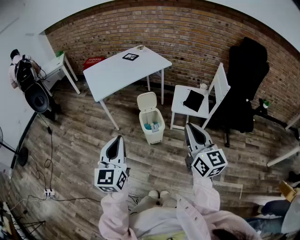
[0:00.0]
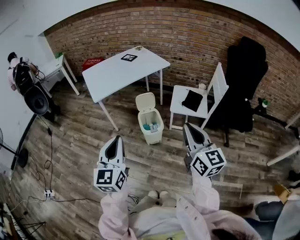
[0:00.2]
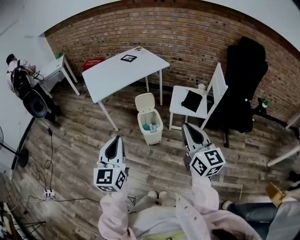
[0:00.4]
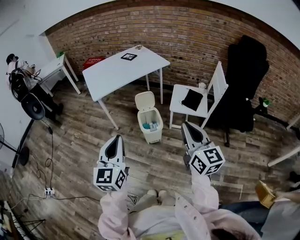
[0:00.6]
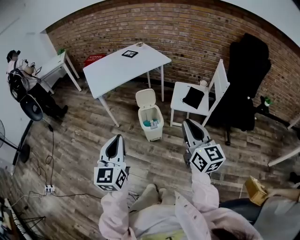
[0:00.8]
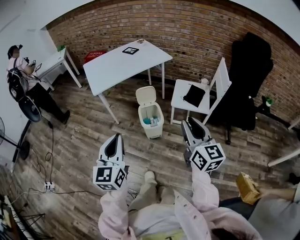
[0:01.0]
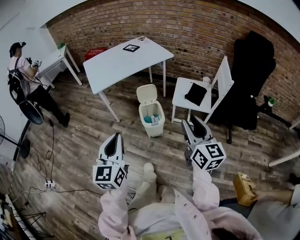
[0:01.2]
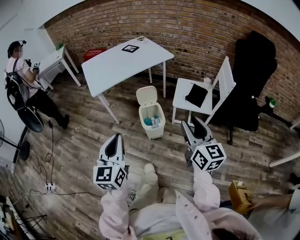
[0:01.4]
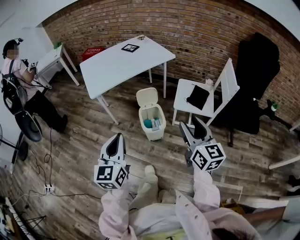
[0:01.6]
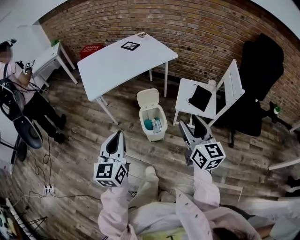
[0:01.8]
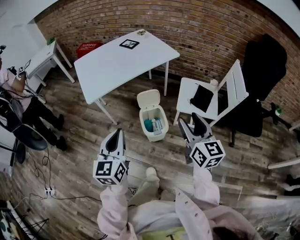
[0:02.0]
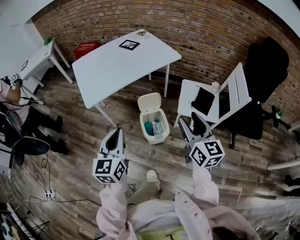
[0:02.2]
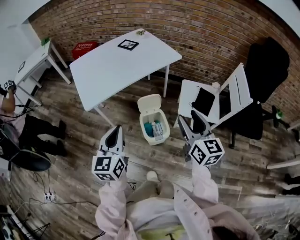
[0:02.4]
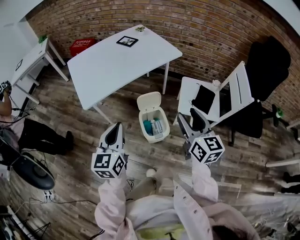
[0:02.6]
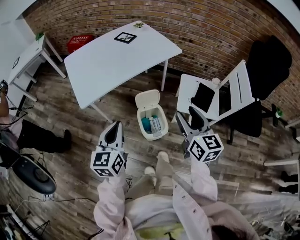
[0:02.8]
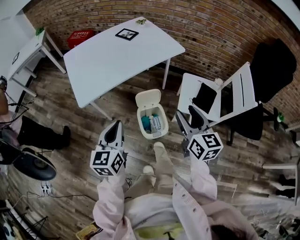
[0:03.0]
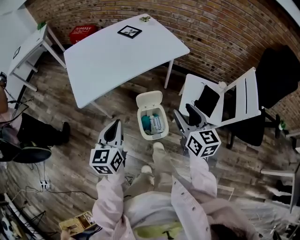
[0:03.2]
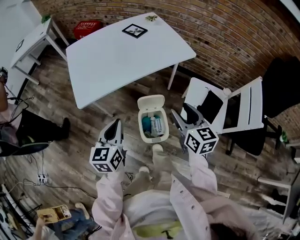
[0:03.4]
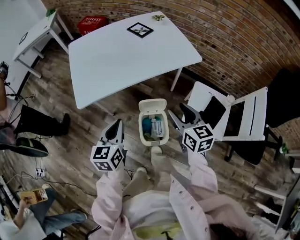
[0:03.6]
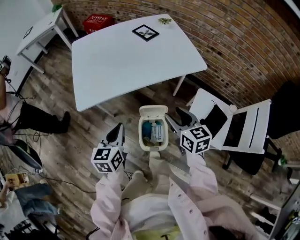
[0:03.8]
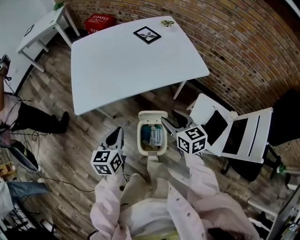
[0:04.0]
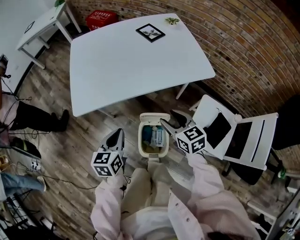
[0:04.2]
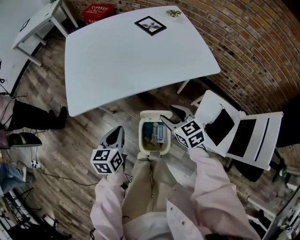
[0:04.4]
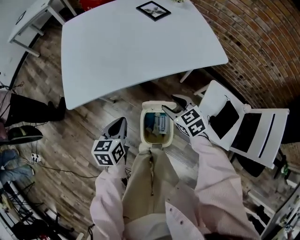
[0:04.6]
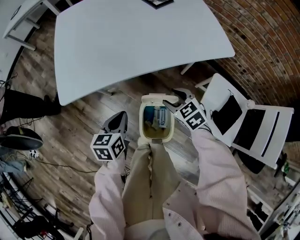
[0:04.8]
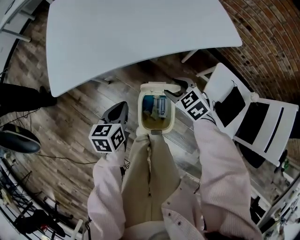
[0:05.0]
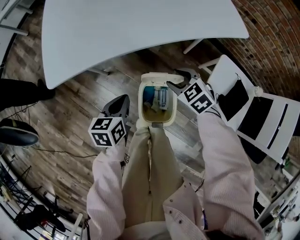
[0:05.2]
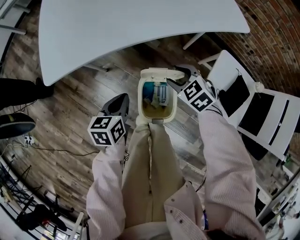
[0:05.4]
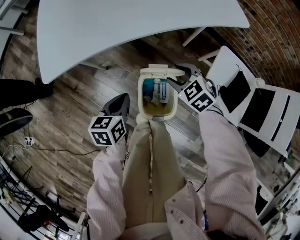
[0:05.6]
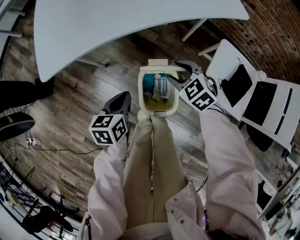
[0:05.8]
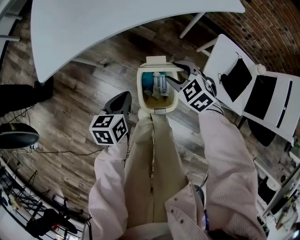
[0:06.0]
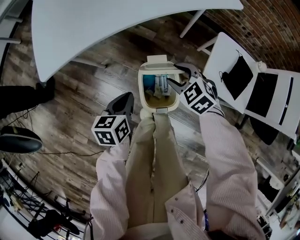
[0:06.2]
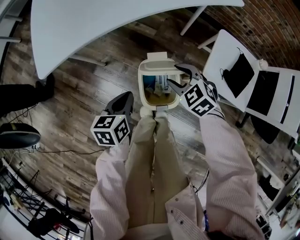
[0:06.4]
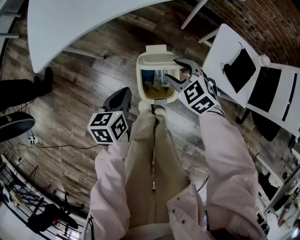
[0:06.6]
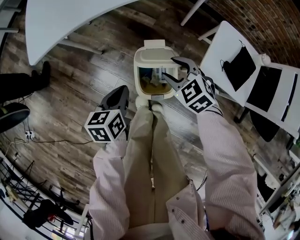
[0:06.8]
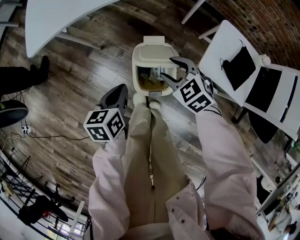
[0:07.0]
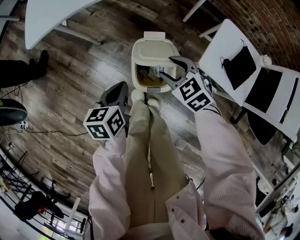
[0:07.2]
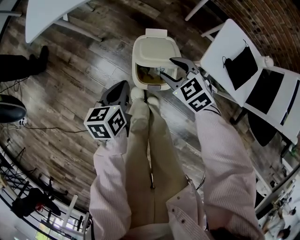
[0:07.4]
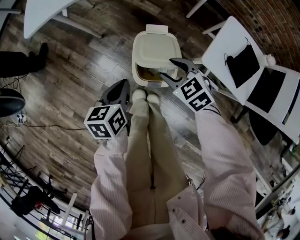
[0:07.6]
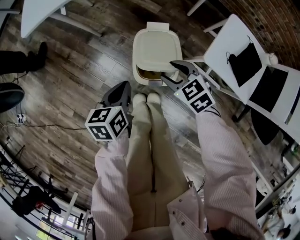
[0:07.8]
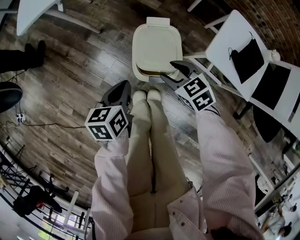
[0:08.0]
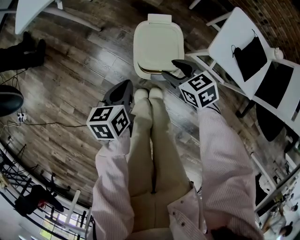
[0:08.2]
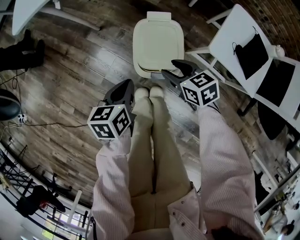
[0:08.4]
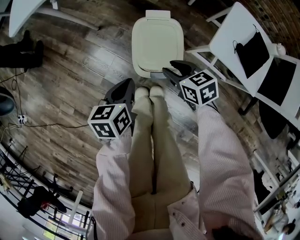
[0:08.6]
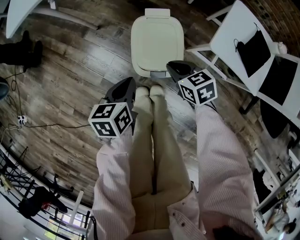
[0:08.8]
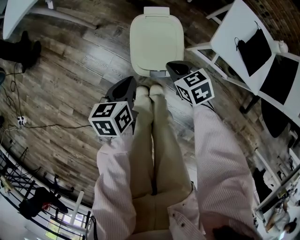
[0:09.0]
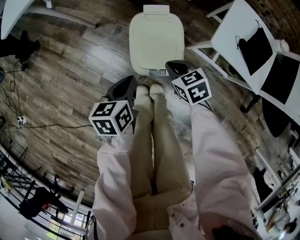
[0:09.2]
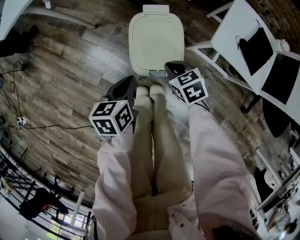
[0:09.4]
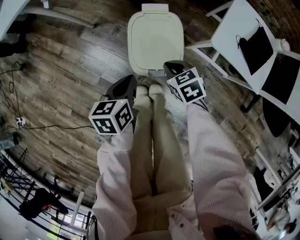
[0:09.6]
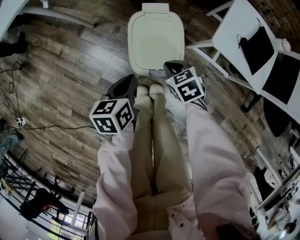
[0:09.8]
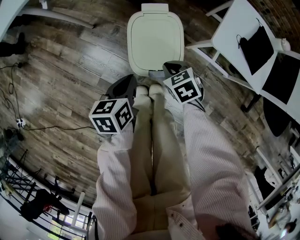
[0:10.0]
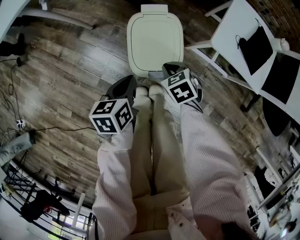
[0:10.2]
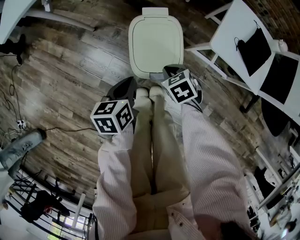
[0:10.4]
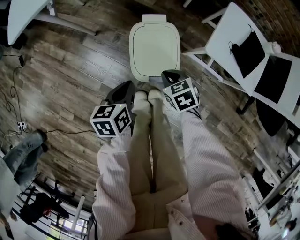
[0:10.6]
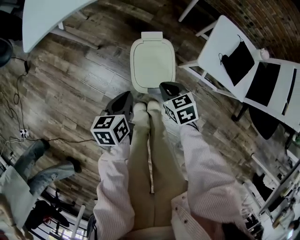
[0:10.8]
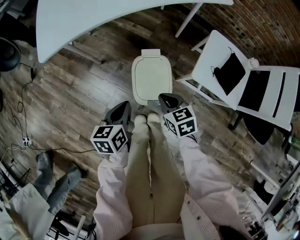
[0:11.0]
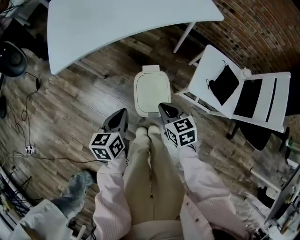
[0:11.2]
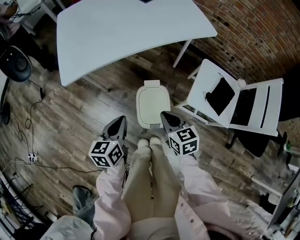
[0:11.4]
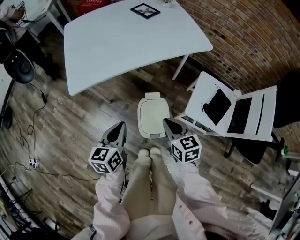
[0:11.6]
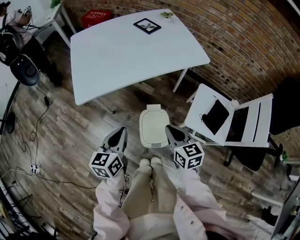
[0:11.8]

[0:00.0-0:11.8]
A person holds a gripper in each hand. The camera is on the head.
0:00.0 to 0:01.4: The right gripper travels forward by roughly 5 cm, and opens up. The left gripper ends up approximately 5 cm from where it was.
0:01.4 to 0:03.0: The grippers both shift forward by approximately 30 cm.
0:03.0 to 0:04.4: The left gripper heads downward and forward, covering approximately 20 cm, and turns by approximately 20 degrees. Meanwhile the right gripper is displaced forward and downward by approximately 30 cm, and rotates about 50 degrees.
0:04.4 to 0:06.0: Both grippers travel together downward, roughly 15 cm. The right gripper turns by approximately 30 degrees.
0:06.0 to 0:07.4: The two grippers go approximately 10 cm backward.
0:07.4 to 0:08.8: The grippers both shift downward by roughly 10 cm. The right gripper turns by approximately 30 degrees, and closes.
0:08.8 to 0:10.4: The right gripper is displaced downward by some 5 cm.
0:10.4 to 0:11.8: The two grippers go approximately 35 cm upward. The right gripper tips its fingers upward by approximately 40 degrees, while the left gripper swivels some 30 degrees.

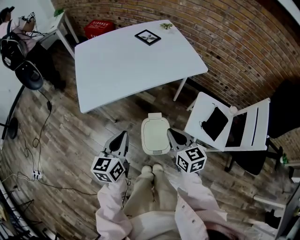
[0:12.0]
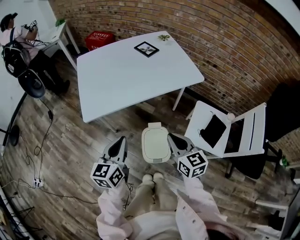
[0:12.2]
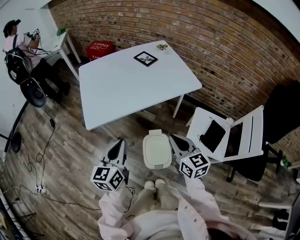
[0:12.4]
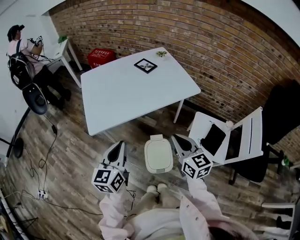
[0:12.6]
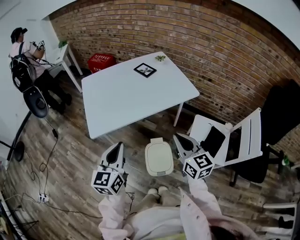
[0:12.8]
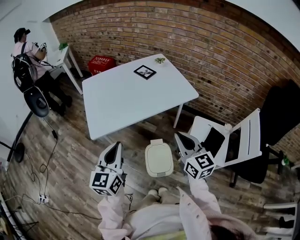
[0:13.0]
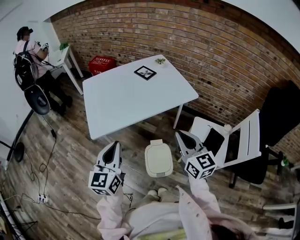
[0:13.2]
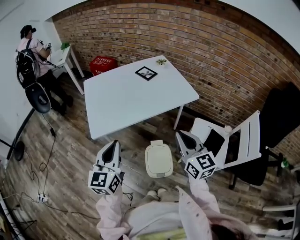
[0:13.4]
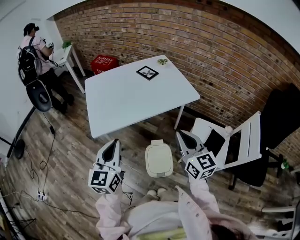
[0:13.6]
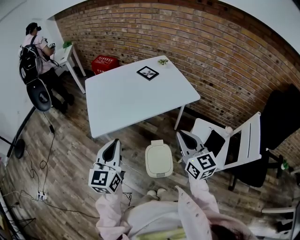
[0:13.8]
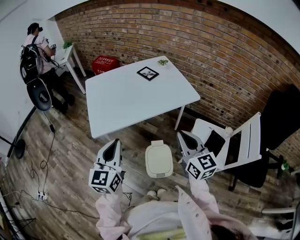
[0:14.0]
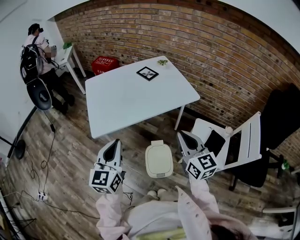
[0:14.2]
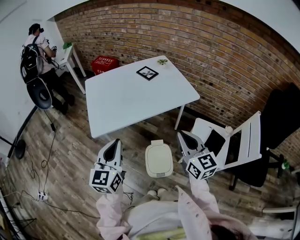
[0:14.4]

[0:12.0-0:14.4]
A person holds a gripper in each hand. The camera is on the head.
0:12.0 to 0:13.2: The grippers both shift upward by about 15 cm. The left gripper changes its angle by roughly 20 degrees; the right gripper swivels some 20 degrees.
0:13.2 to 0:14.4: The two grippers keep their place.

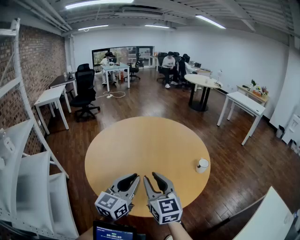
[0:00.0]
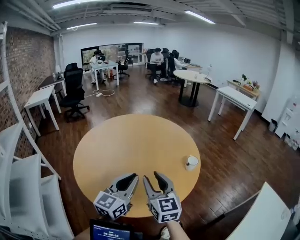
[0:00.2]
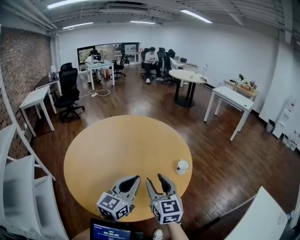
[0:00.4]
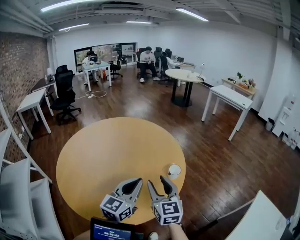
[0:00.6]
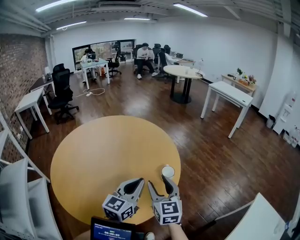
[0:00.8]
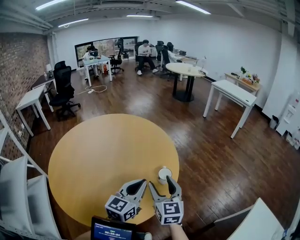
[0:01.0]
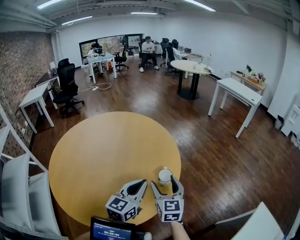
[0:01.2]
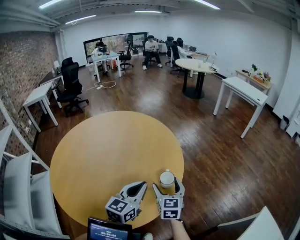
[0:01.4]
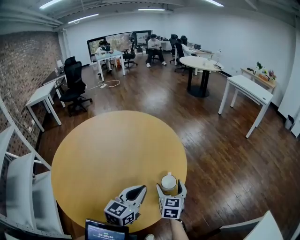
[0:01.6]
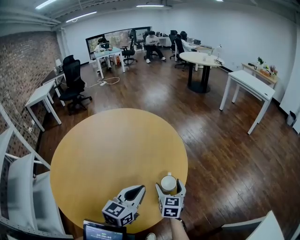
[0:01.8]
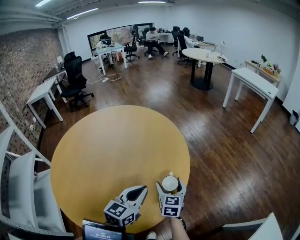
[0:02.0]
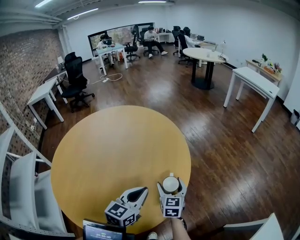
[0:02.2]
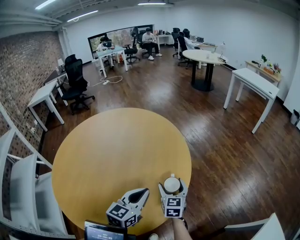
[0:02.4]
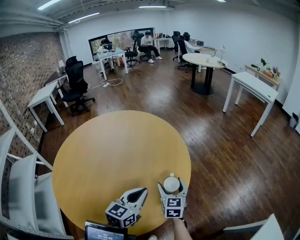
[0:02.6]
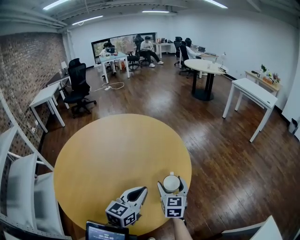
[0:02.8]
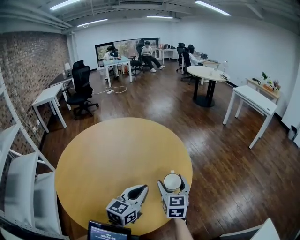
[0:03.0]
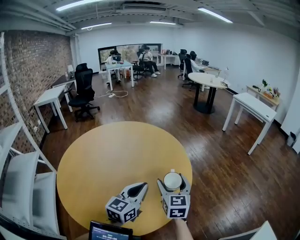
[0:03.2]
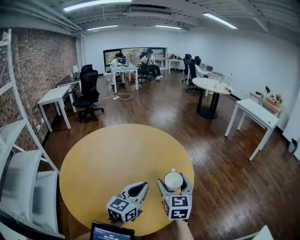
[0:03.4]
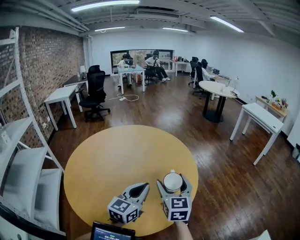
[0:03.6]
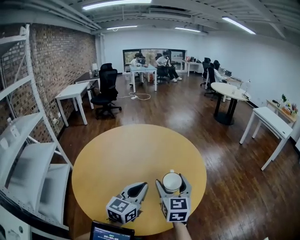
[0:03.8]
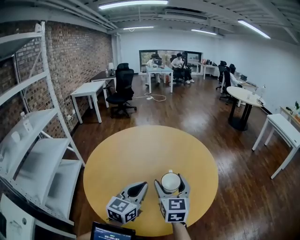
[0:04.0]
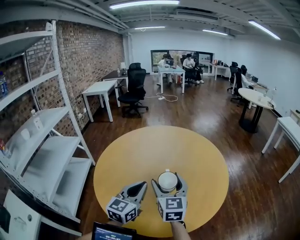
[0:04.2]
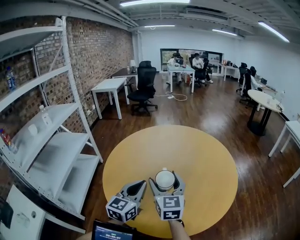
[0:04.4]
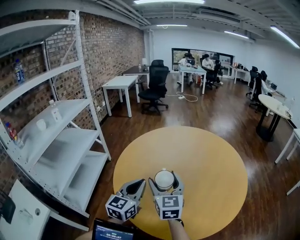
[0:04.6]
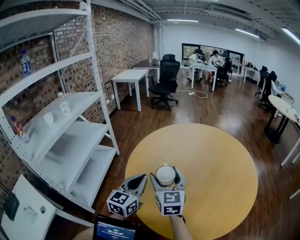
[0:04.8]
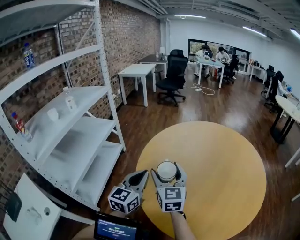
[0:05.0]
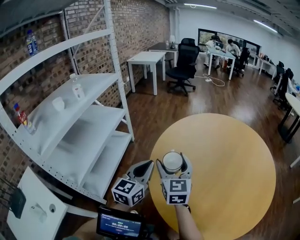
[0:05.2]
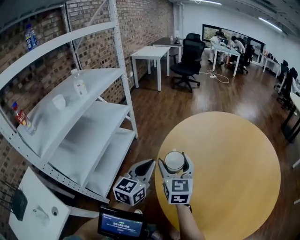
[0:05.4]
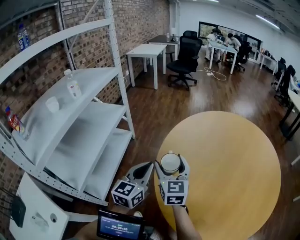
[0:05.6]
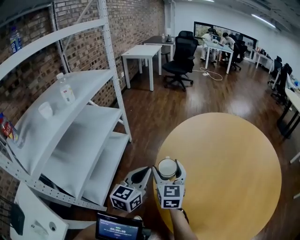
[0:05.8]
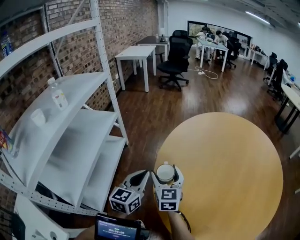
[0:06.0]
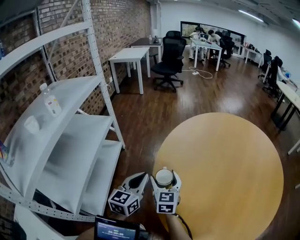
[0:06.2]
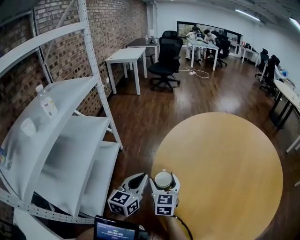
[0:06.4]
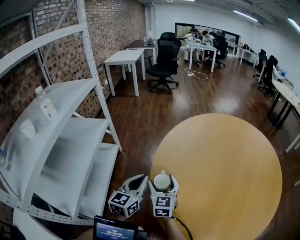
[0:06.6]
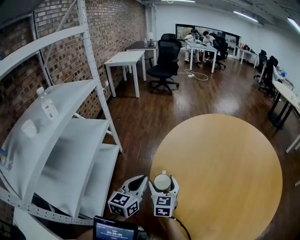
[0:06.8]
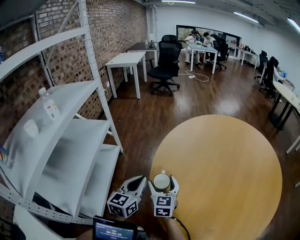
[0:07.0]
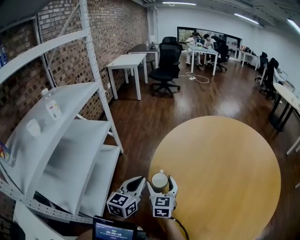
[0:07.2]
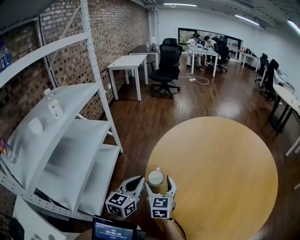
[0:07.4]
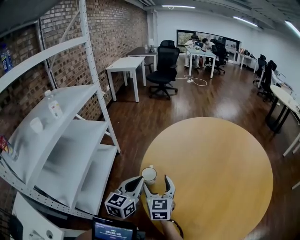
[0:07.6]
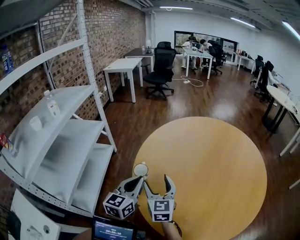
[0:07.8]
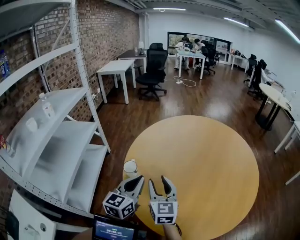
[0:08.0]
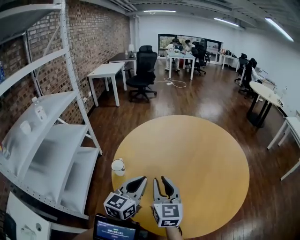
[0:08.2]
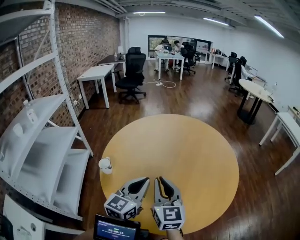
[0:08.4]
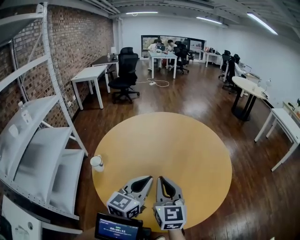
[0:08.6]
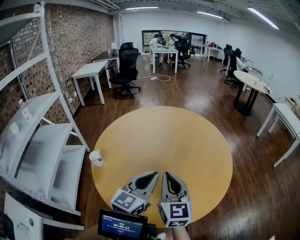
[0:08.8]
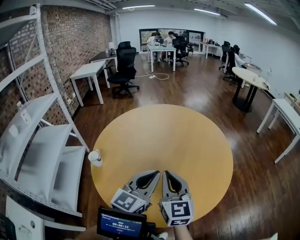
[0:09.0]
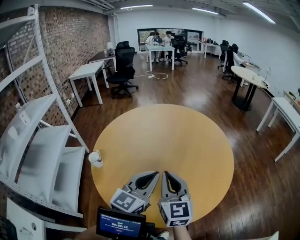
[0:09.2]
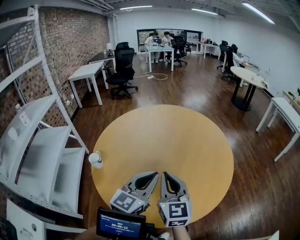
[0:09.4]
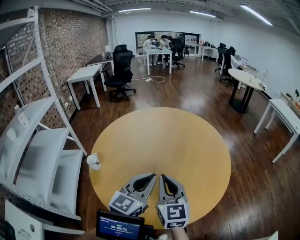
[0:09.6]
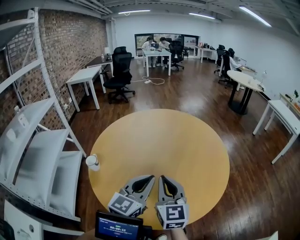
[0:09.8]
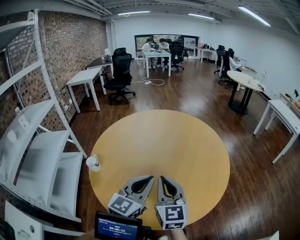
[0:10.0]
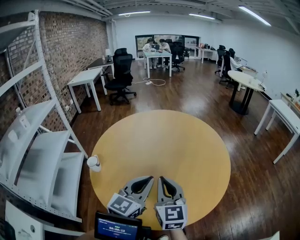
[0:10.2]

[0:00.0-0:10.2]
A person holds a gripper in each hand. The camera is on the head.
0:00.0 to 0:01.4: The two grippers go some 40 cm to the right, forward and downward. The right gripper changes its angle by about 20 degrees, and opens.
0:01.4 to 0:03.0: The right gripper goes downward and returns, about 10 cm each way.
0:03.0 to 0:04.4: The right gripper shifts by about 35 cm, and turns by about 30 degrees, while the left gripper ends up about 30 cm from where it was, and turns by approximately 30 degrees.
0:04.4 to 0:05.8: Both grippers move to the left and forward, approximately 40 cm.
0:05.8 to 0:07.2: The right gripper moves downward, roughly 10 cm.
0:07.2 to 0:08.8: The two grippers travel together, to the right, about 50 cm. The right gripper moves upward, roughly 20 cm, and closes. The left gripper rotates about 30 degrees.
0:08.8 to 0:10.2: The grippers make only small movements.
